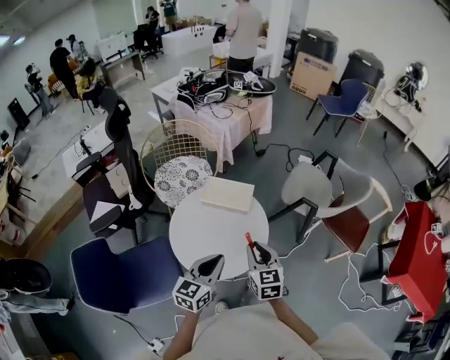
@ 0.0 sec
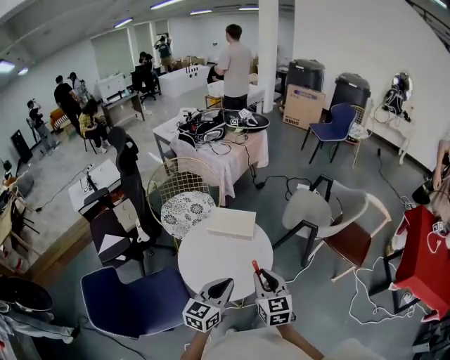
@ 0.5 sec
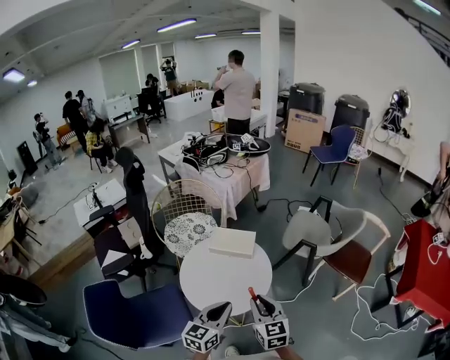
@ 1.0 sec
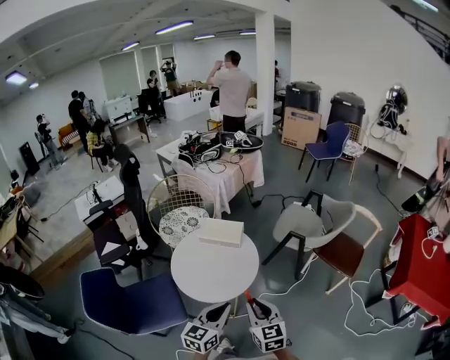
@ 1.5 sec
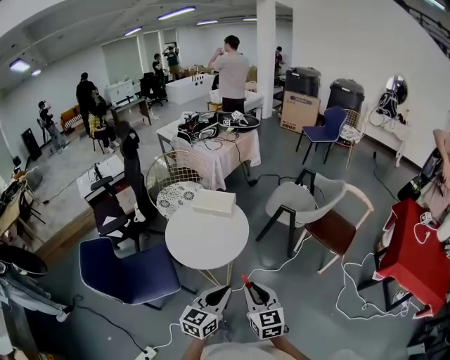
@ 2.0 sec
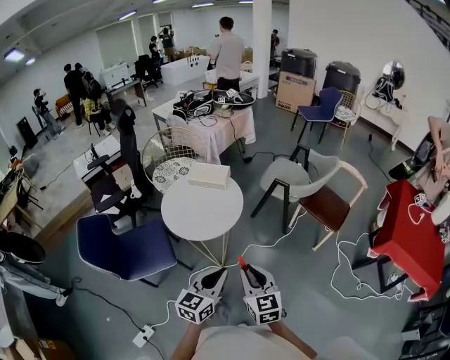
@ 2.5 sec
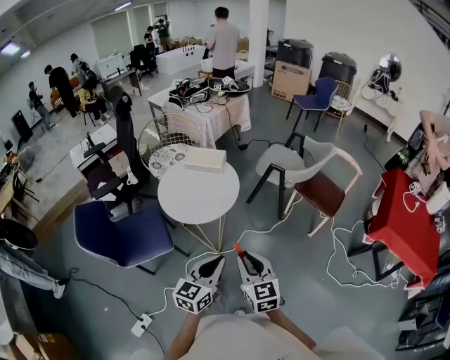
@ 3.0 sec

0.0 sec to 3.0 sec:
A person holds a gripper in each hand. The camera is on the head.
0.0 sec to 1.5 sec: The left gripper heads backward and to the right, covering roughly 15 cm; the right gripper moves backward, some 20 cm.
1.5 sec to 3.0 sec: The grippers both shift backward and to the right by some 20 cm.

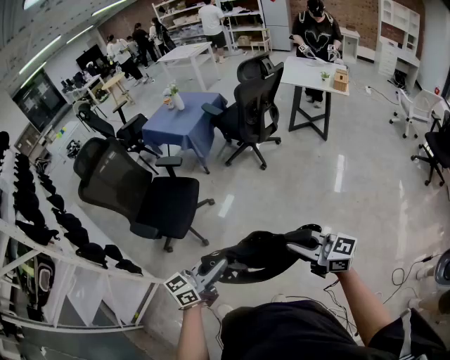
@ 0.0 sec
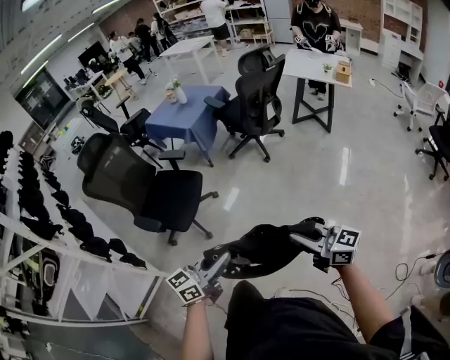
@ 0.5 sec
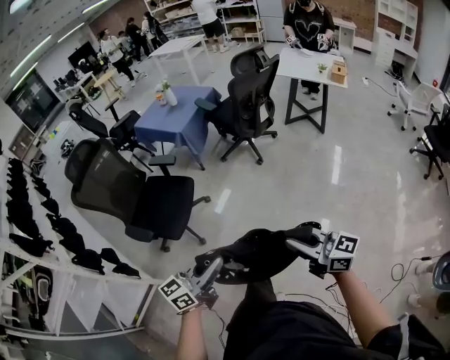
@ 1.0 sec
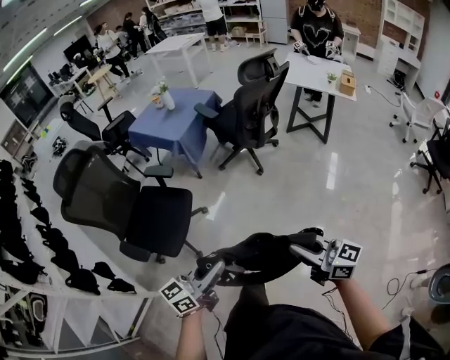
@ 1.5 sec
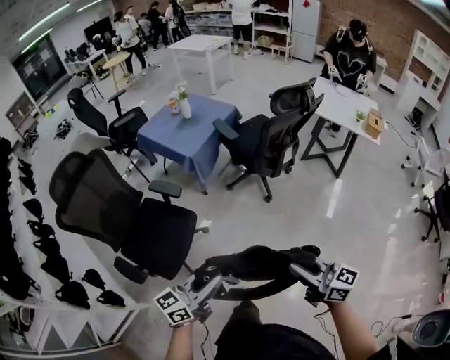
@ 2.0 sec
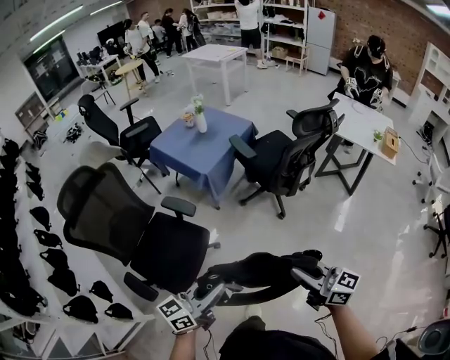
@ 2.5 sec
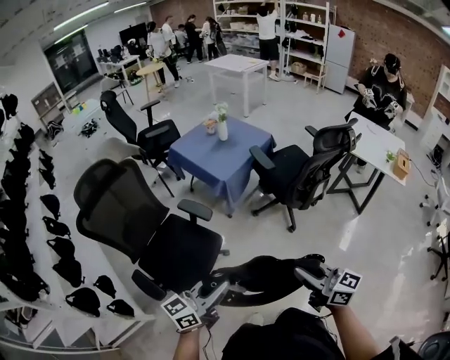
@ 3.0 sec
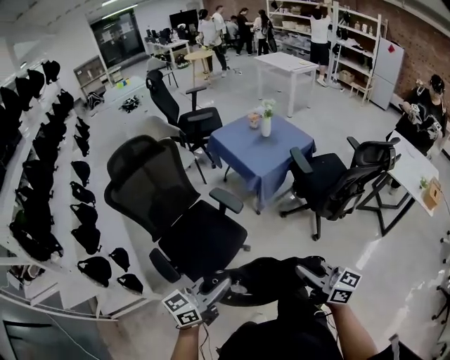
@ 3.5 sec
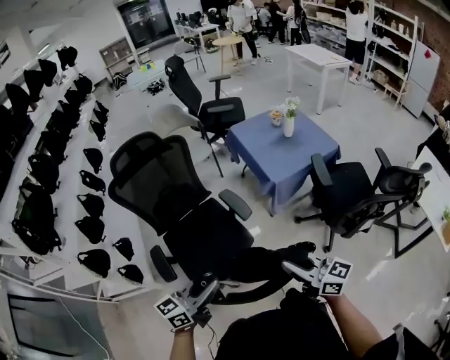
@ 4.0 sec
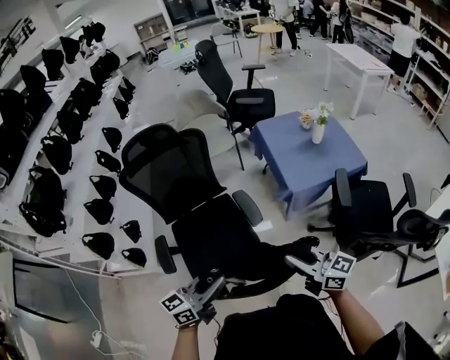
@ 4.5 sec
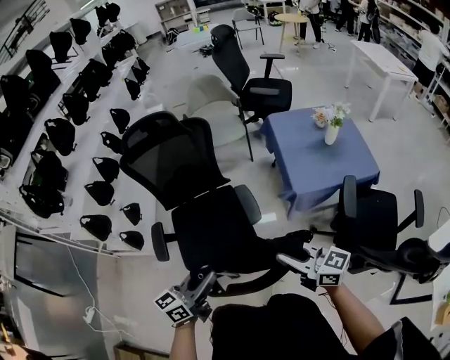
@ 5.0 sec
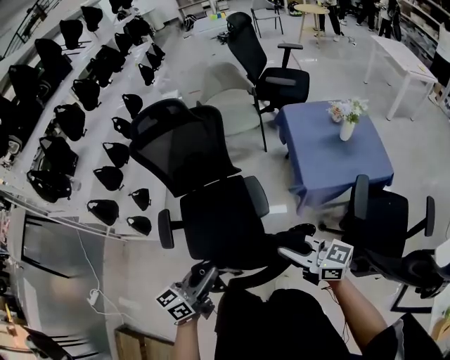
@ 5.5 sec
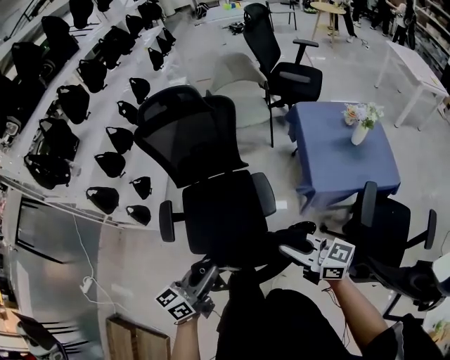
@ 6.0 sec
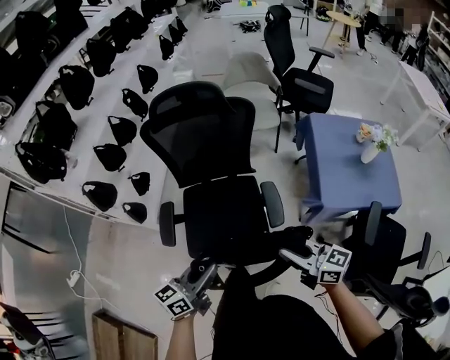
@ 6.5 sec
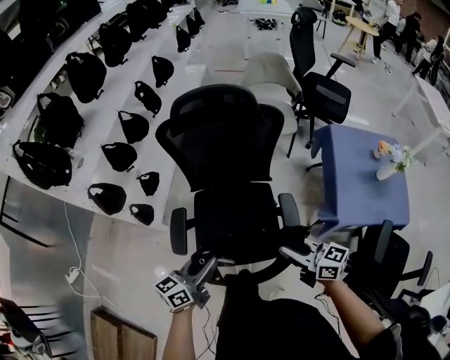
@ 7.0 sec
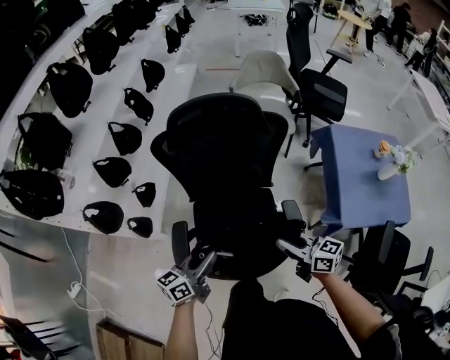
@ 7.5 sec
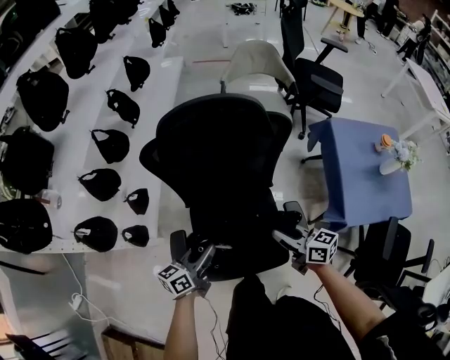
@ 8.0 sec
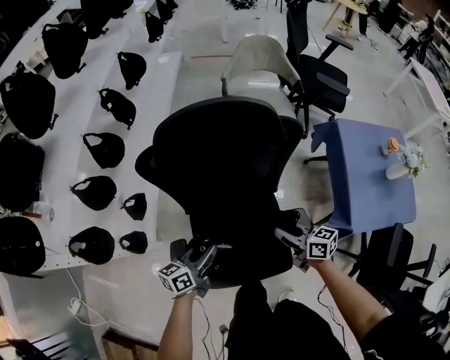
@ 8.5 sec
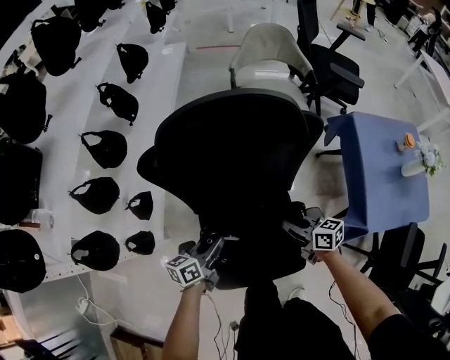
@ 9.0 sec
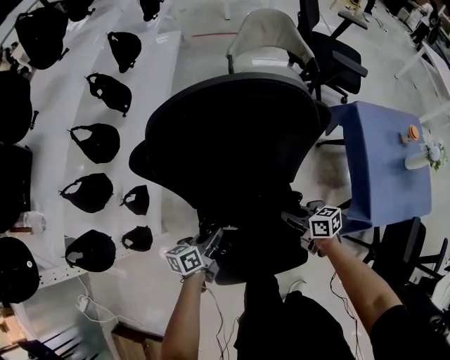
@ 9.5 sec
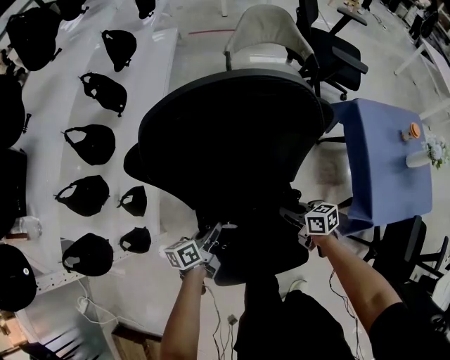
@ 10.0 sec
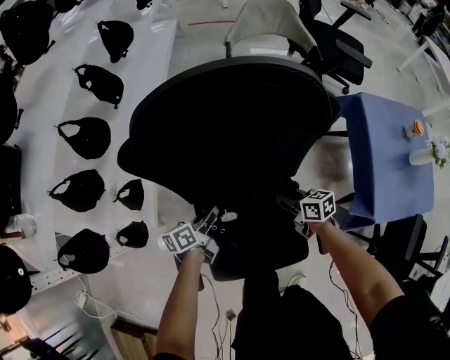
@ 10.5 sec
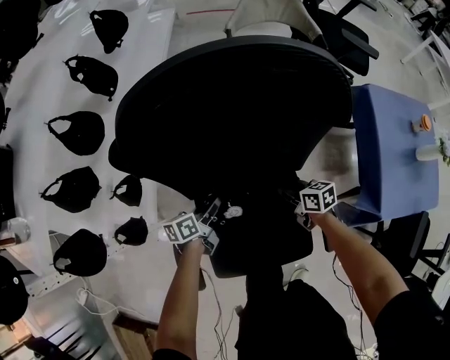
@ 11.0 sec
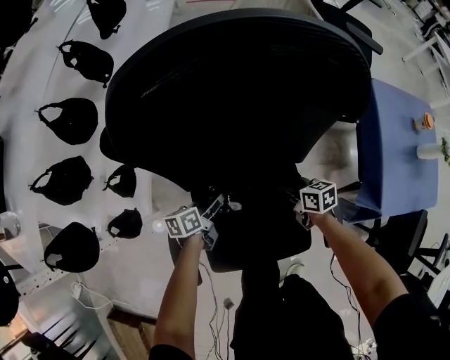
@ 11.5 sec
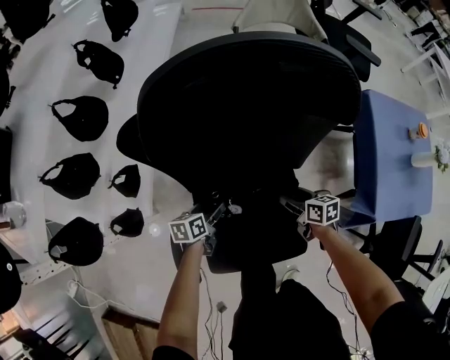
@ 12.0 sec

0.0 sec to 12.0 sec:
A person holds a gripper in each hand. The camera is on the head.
0.0 sec to 2.0 sec: Both grippers travel together forward, approximately 35 cm.
2.0 sec to 4.0 sec: The left gripper shifts by about 25 cm, and changes its angle by some 40 degrees. Meanwhile the right gripper shifts by some 35 cm, and swivels approximately 40 degrees.
4.0 sec to 6.0 sec: The left gripper ends up roughly 15 cm from where it was, and turns by approximately 30 degrees; the right gripper ends up roughly 20 cm from where it was, and turns by approximately 30 degrees.
6.0 sec to 8.0 sec: The two grippers go approximately 40 cm forward, to the left and downward. The right gripper turns by approximately 20 degrees.
8.0 sec to 10.0 sec: The grippers both shift downward and forward by approximately 25 cm. The left gripper turns by roughly 20 degrees.
10.0 sec to 12.0 sec: The right gripper heads downward, covering roughly 5 cm, and opens its fingers, while the left gripper is displaced downward by some 10 cm, and opens its fingers.

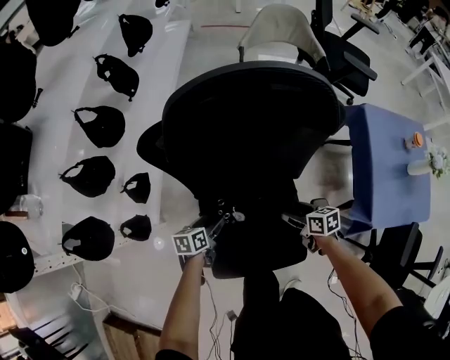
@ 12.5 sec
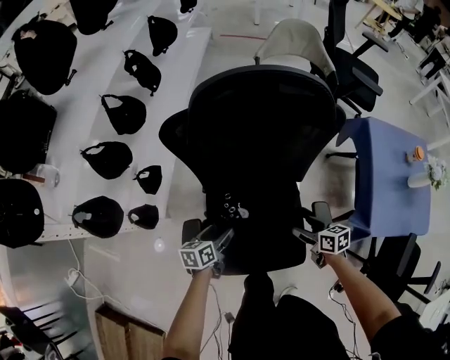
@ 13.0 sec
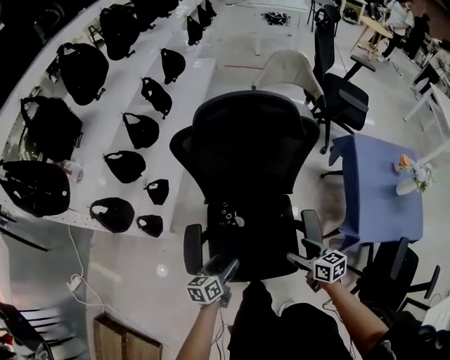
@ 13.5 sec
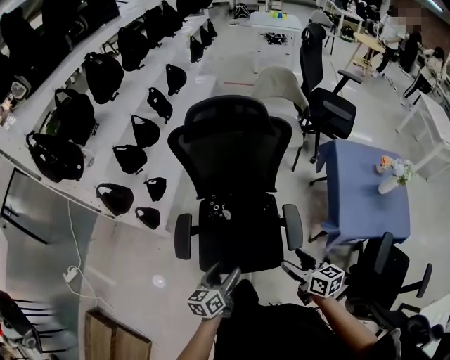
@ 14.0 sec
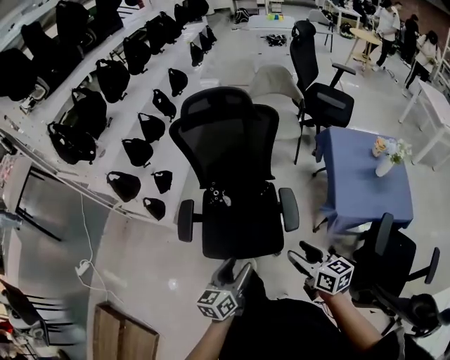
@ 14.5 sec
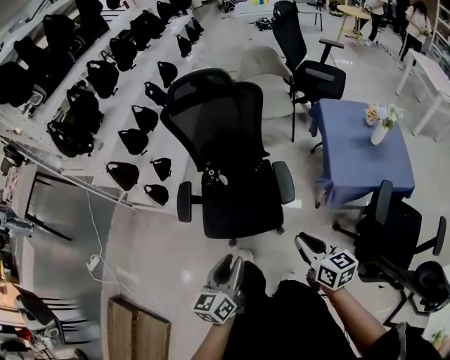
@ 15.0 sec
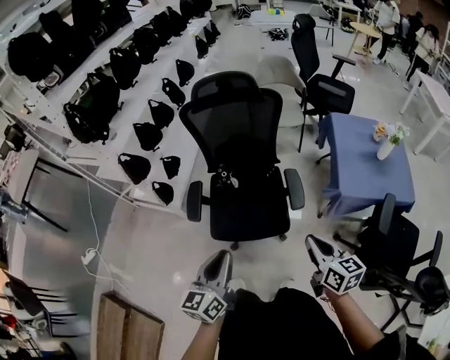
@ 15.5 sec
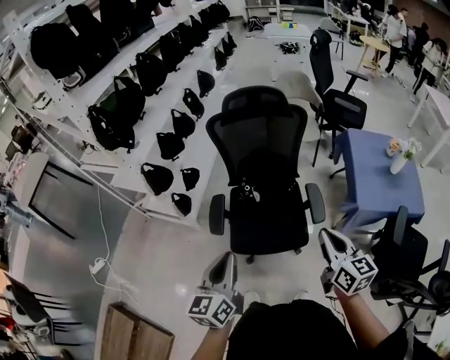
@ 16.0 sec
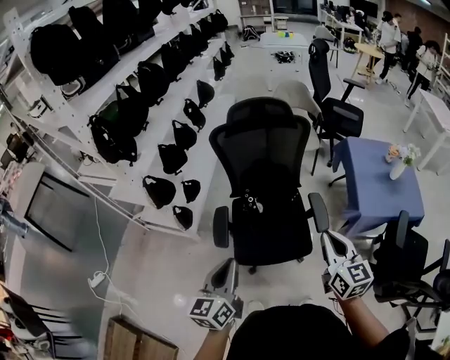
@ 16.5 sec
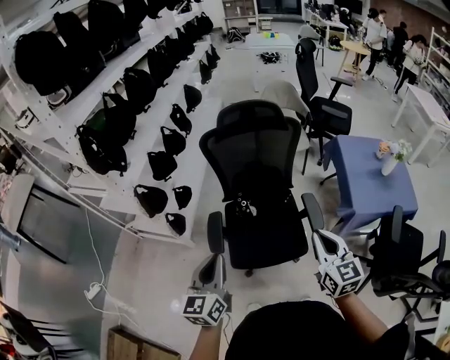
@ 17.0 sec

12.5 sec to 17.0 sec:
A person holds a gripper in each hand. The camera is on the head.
12.5 sec to 14.5 sec: The left gripper is displaced backward, upward and to the right by about 60 cm, and turns by some 30 degrees. The right gripper goes approximately 50 cm backward and upward, and rotates roughly 30 degrees.
14.5 sec to 17.0 sec: The right gripper is displaced to the left and upward by some 20 cm, rotates some 30 degrees, and closes, while the left gripper moves to the left and upward, about 25 cm, changes its angle by roughly 20 degrees, and closes its fingers.

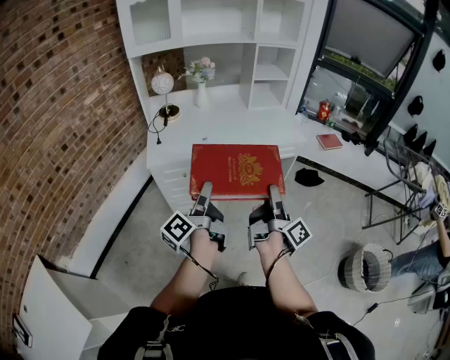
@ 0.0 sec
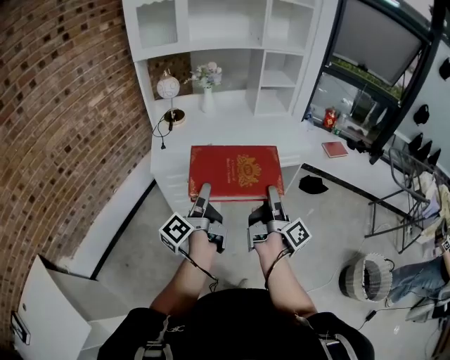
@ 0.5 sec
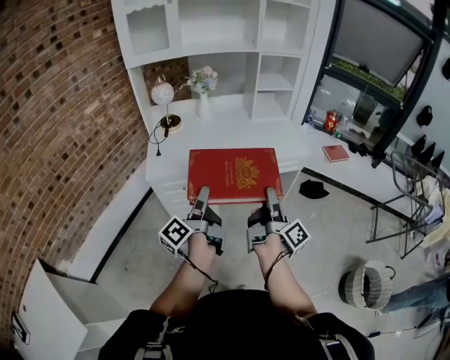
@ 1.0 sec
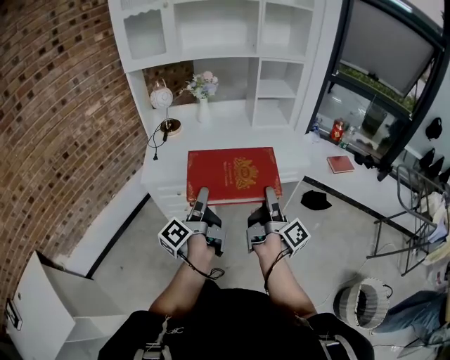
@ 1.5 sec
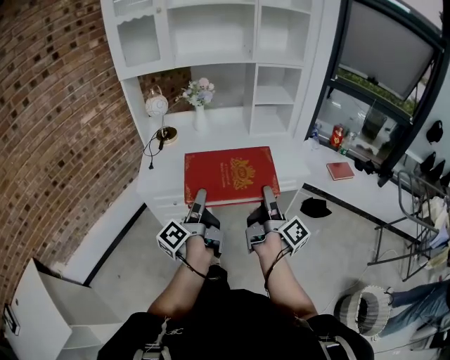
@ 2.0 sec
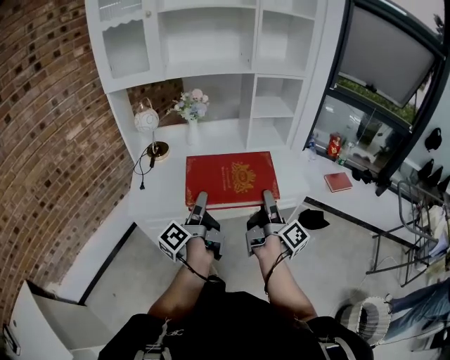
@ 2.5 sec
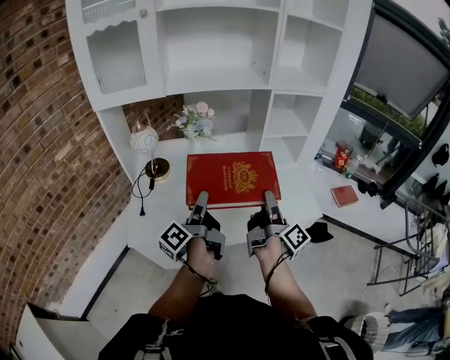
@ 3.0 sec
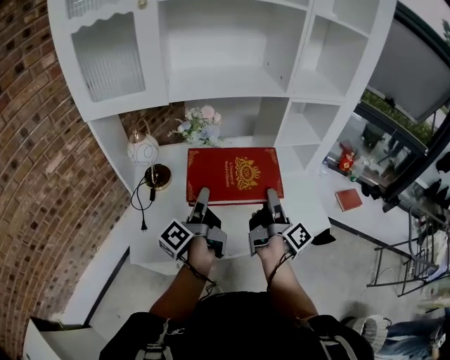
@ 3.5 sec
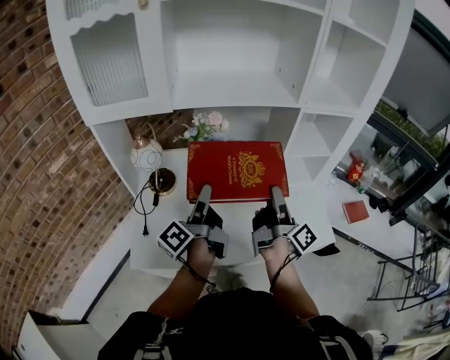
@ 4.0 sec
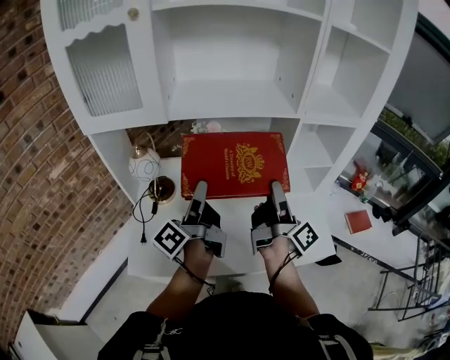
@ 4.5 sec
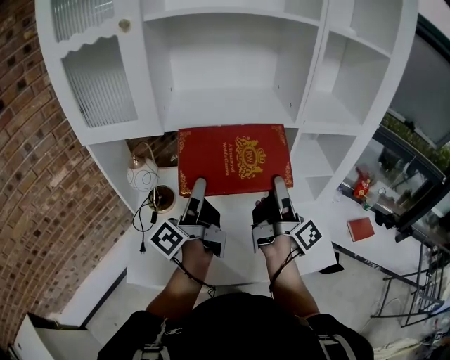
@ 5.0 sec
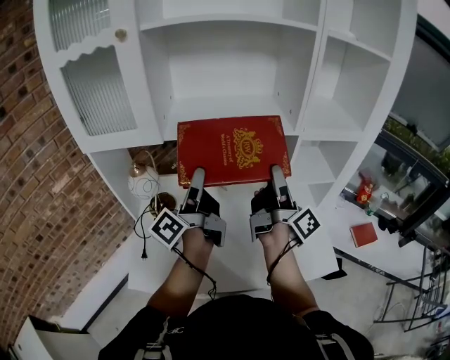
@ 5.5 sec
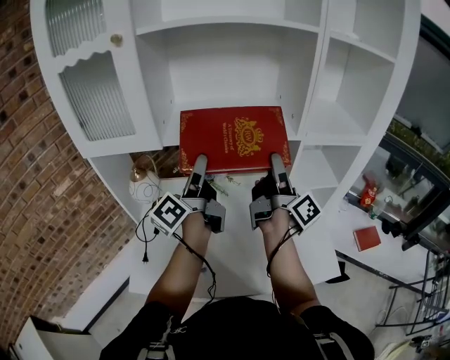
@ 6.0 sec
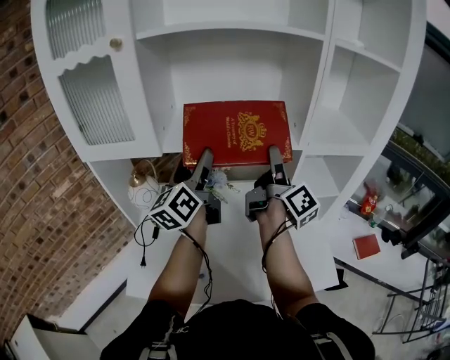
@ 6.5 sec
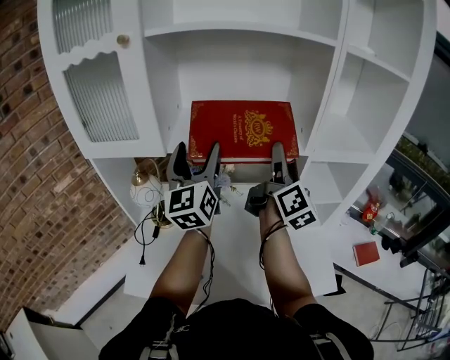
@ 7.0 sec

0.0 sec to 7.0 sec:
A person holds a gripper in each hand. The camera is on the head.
0.0 sec to 2.0 sec: The two grippers go about 20 cm forward and to the right.
2.0 sec to 3.5 sec: Both grippers are carried forward, about 40 cm.
3.5 sec to 5.0 sec: The left gripper moves upward and forward, about 15 cm, while the right gripper travels forward and upward by roughly 15 cm.
5.0 sec to 7.0 sec: Both grippers move forward and upward, some 15 cm. The right gripper rotates about 40 degrees. Meanwhile the left gripper rotates around the line of its fingers by about 70 degrees, clockwise from behind.
